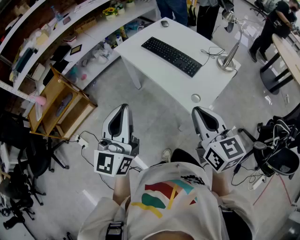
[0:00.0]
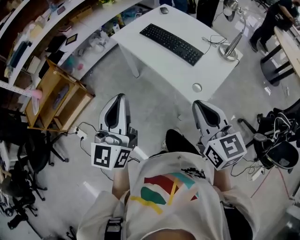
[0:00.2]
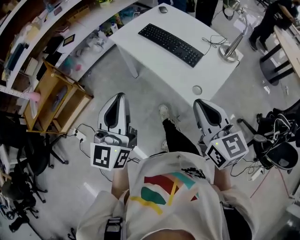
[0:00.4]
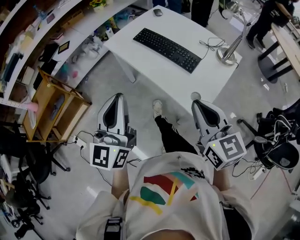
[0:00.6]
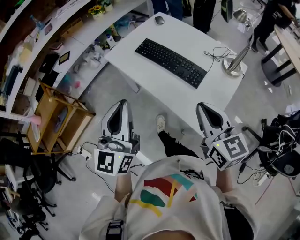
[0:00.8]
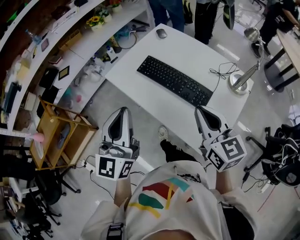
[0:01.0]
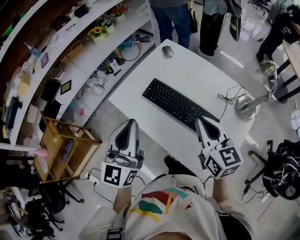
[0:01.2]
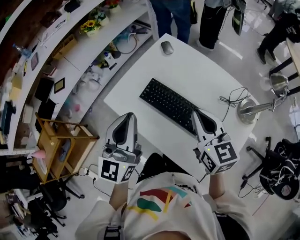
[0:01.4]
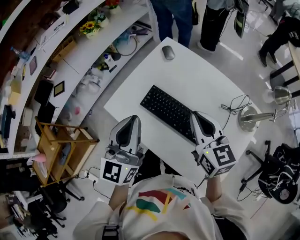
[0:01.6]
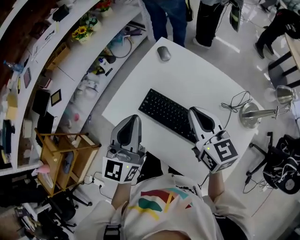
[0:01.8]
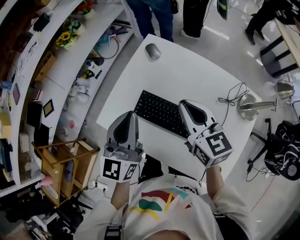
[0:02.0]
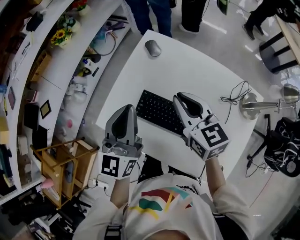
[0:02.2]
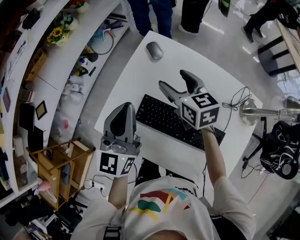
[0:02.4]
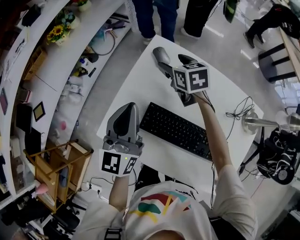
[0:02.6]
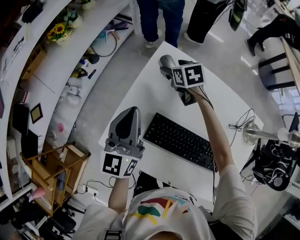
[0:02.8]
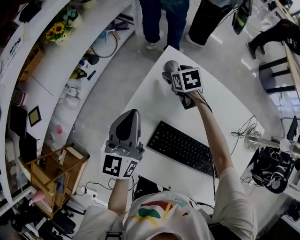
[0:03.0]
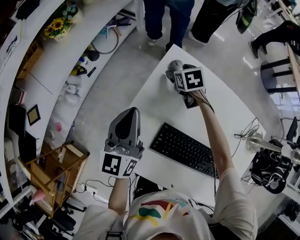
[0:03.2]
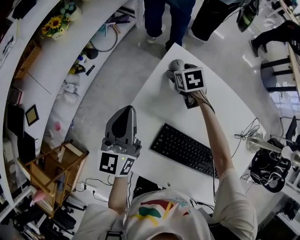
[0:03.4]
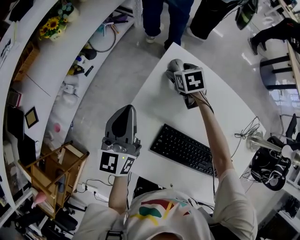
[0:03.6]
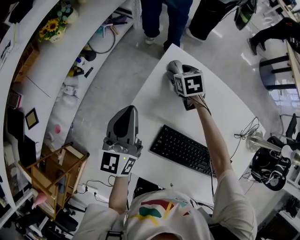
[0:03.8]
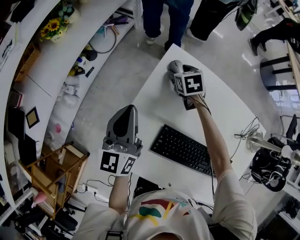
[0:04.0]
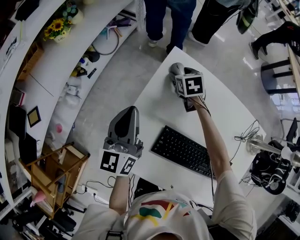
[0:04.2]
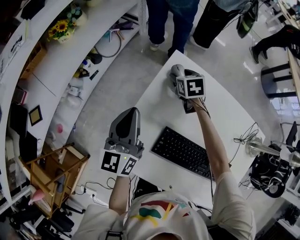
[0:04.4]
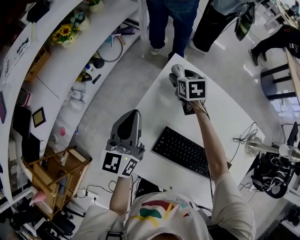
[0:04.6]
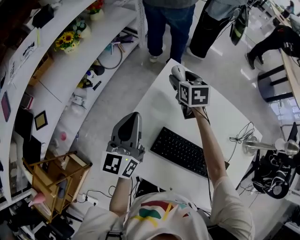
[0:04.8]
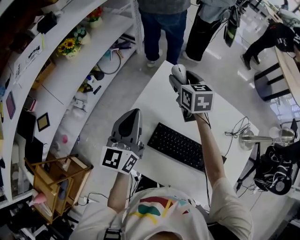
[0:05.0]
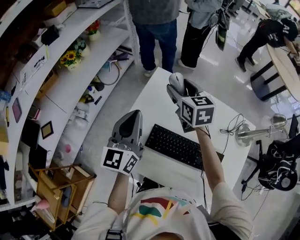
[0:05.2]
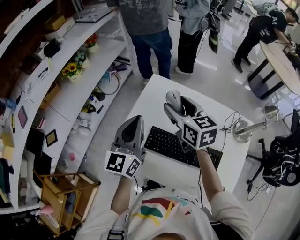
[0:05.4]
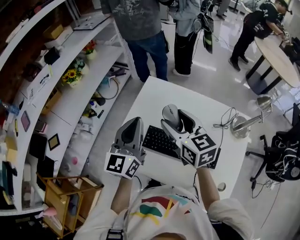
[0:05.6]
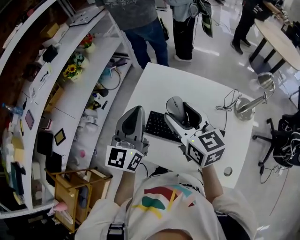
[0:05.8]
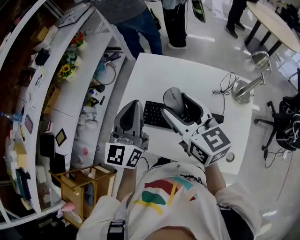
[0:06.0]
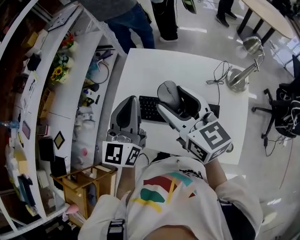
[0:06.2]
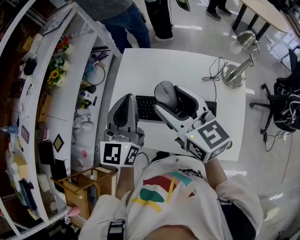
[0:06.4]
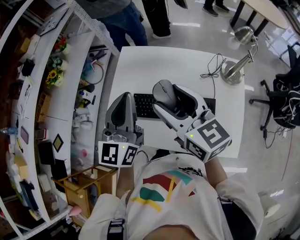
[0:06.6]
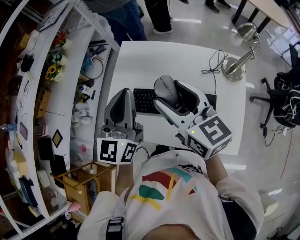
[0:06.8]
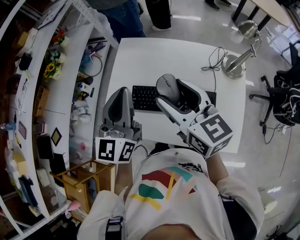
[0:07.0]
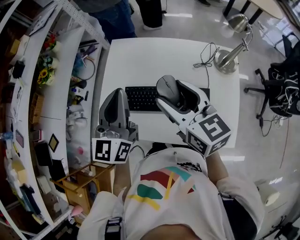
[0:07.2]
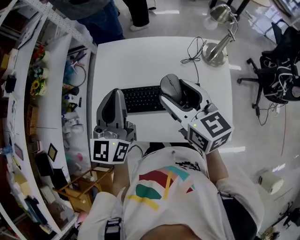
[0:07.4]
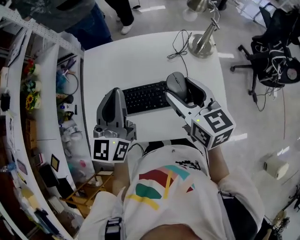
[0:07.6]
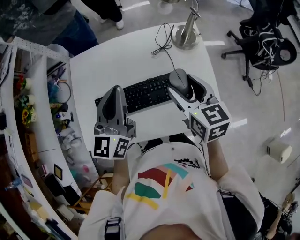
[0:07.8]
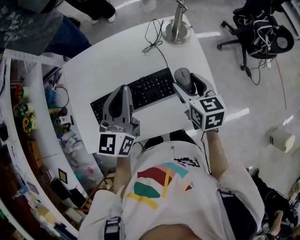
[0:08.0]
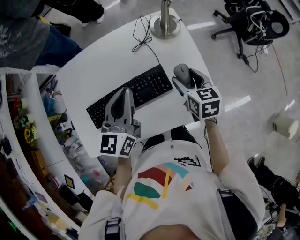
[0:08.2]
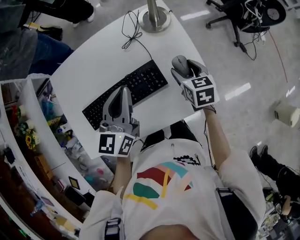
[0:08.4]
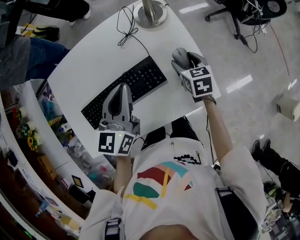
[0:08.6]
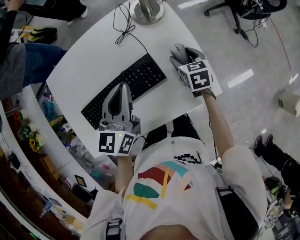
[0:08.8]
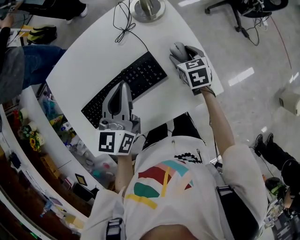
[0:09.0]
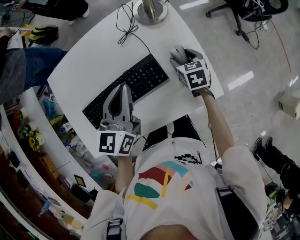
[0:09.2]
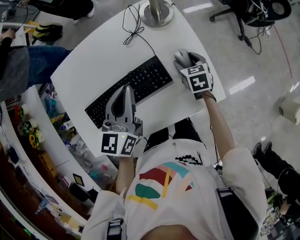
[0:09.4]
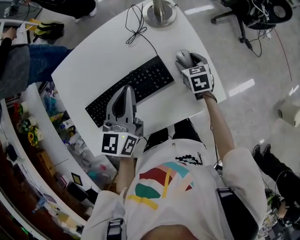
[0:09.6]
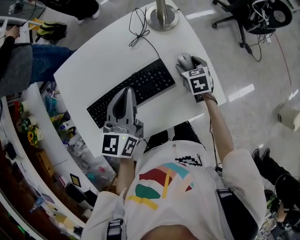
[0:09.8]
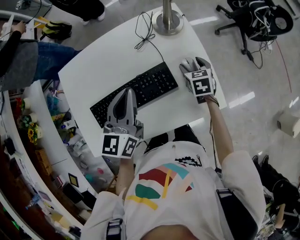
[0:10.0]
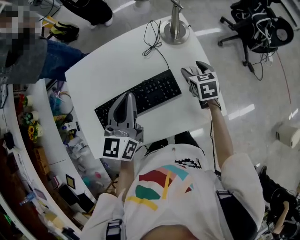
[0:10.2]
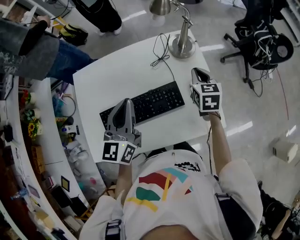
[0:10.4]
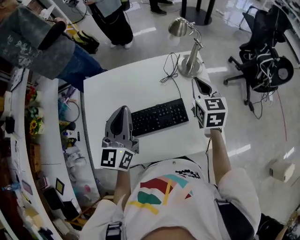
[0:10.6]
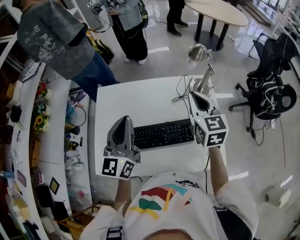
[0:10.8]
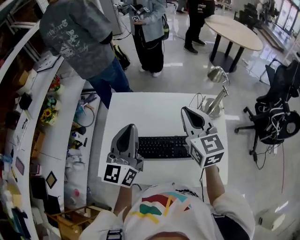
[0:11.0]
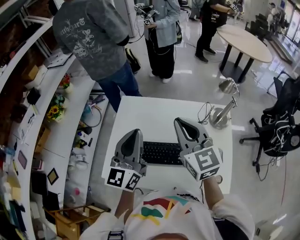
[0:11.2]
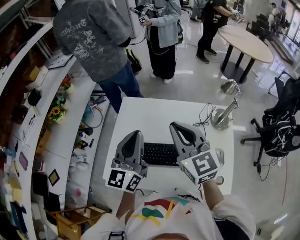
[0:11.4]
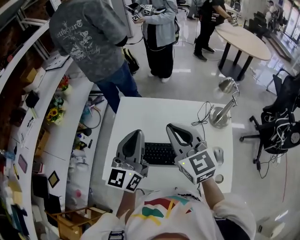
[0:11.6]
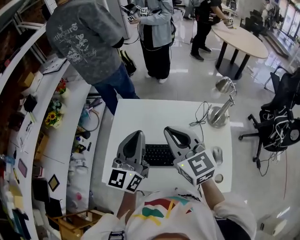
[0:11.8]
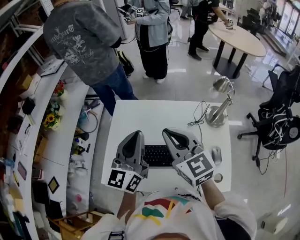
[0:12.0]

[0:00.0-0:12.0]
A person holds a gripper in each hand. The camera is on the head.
0:00.0 to 0:01.6: Both grippers are carried forward, roughly 60 cm.
0:01.6 to 0:03.0: The right gripper shifts approximately 50 cm forward and downward, angles its fingers downward, by some 40 degrees, and opens its fingers. The left gripper shifts approximately 30 cm forward and downward.
0:03.0 to 0:04.4: The grippers make only small movements.
0:04.4 to 0:06.0: The left gripper shifts some 30 cm backward, upward and to the right, and changes its angle by approximately 20 degrees. The right gripper travels backward and upward by some 50 cm, and angles its fingers upward, by about 40 degrees.
0:06.0 to 0:07.6: The left gripper heads to the right, covering about 10 cm. Meanwhile the right gripper heads to the right and downward, covering some 20 cm, and changes its angle by roughly 30 degrees.
0:07.6 to 0:09.0: The left gripper moves some 20 cm, and swivels about 30 degrees, while the right gripper heads downward, covering some 25 cm, and swivels about 40 degrees.
0:09.0 to 0:10.4: The right gripper shifts approximately 15 cm upward, and closes its fingers. The left gripper heads to the left and upward, covering approximately 10 cm.
0:10.4 to 0:12.0: The left gripper shifts by some 15 cm, and changes its angle by approximately 20 degrees. The right gripper changes place by about 35 cm, and swivels approximately 50 degrees.

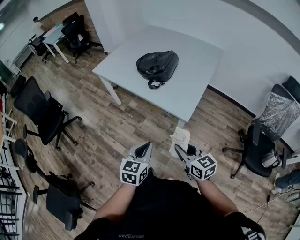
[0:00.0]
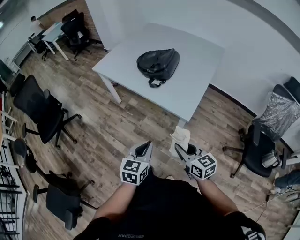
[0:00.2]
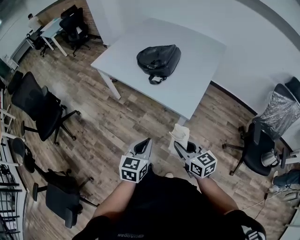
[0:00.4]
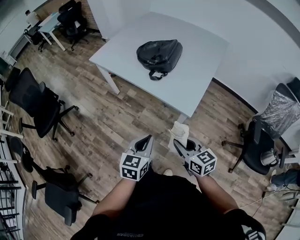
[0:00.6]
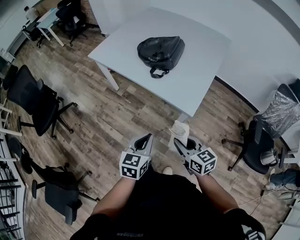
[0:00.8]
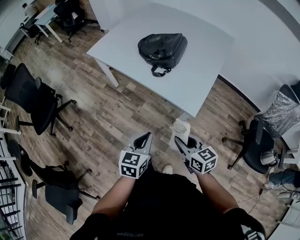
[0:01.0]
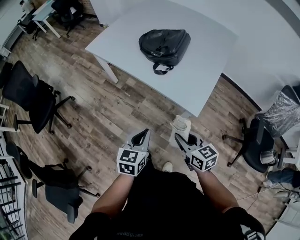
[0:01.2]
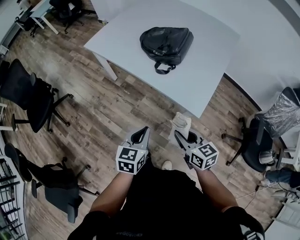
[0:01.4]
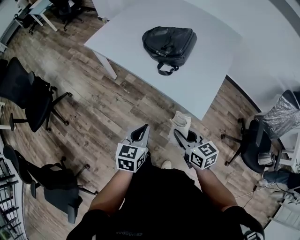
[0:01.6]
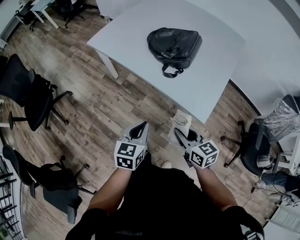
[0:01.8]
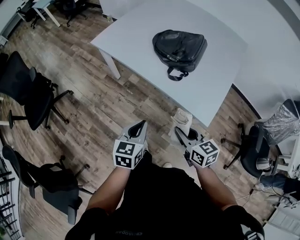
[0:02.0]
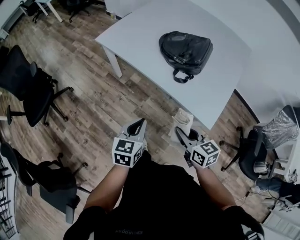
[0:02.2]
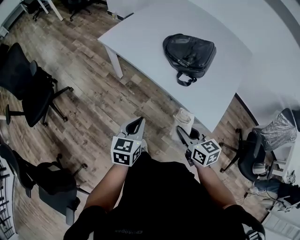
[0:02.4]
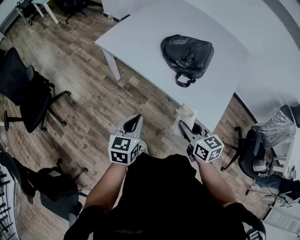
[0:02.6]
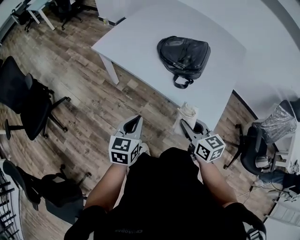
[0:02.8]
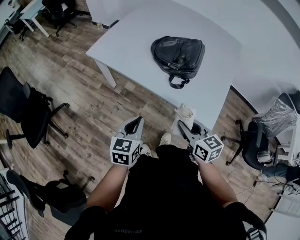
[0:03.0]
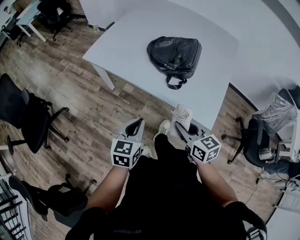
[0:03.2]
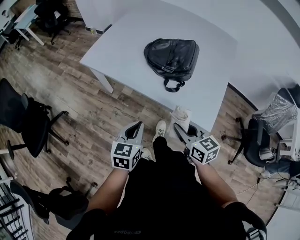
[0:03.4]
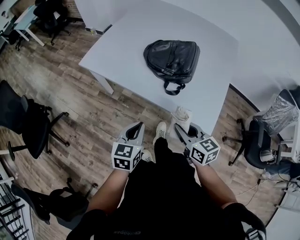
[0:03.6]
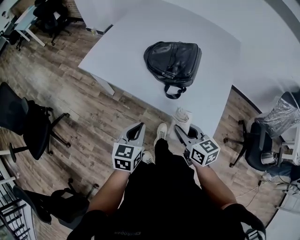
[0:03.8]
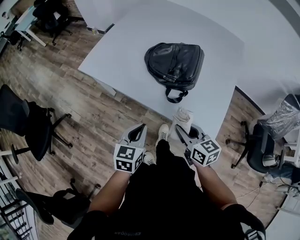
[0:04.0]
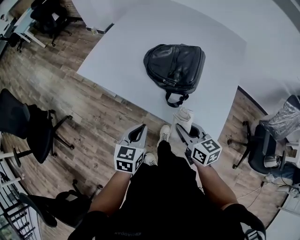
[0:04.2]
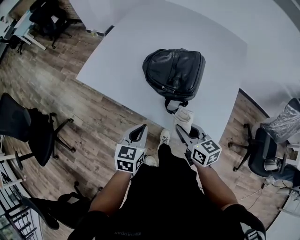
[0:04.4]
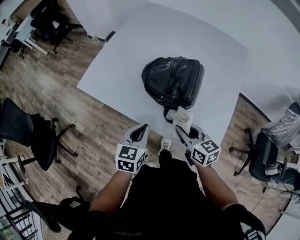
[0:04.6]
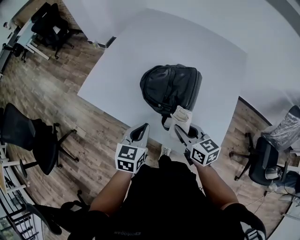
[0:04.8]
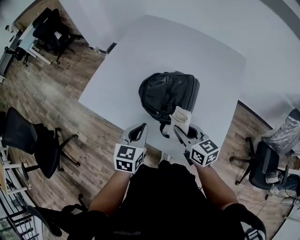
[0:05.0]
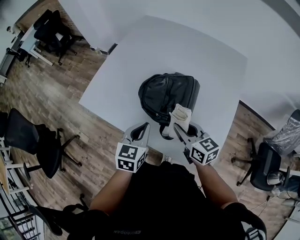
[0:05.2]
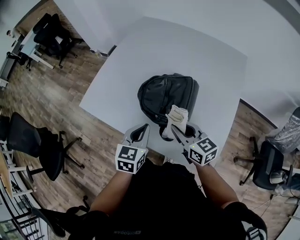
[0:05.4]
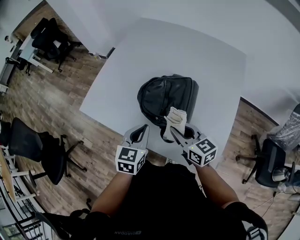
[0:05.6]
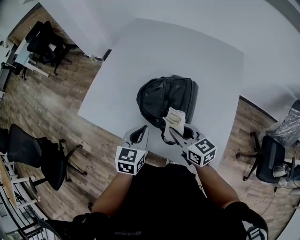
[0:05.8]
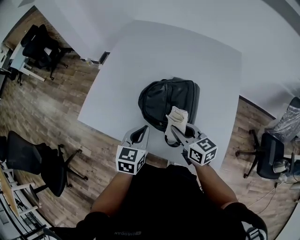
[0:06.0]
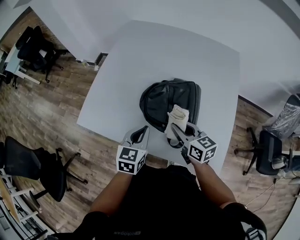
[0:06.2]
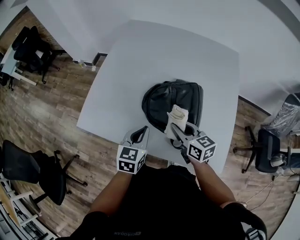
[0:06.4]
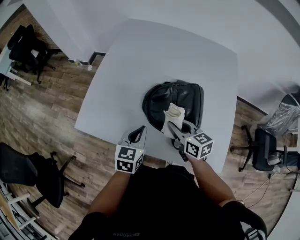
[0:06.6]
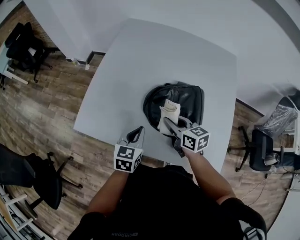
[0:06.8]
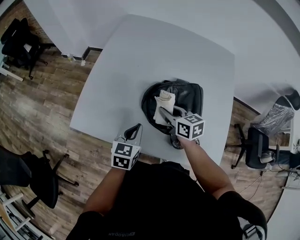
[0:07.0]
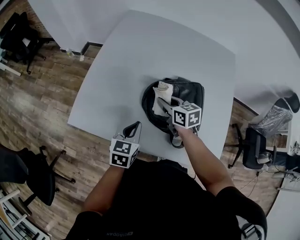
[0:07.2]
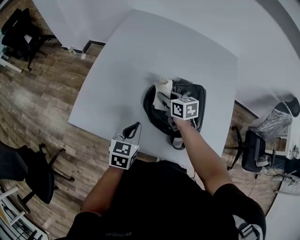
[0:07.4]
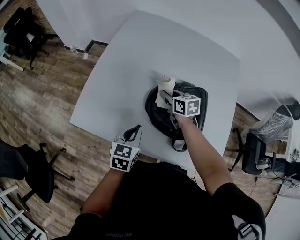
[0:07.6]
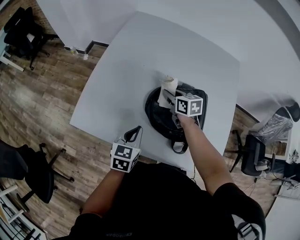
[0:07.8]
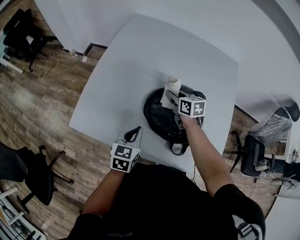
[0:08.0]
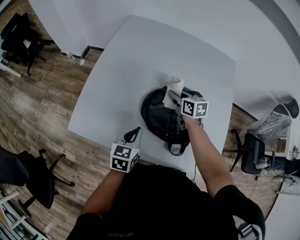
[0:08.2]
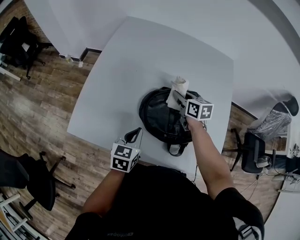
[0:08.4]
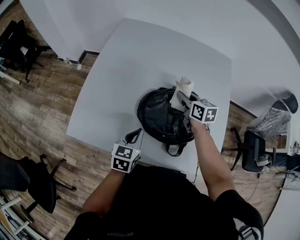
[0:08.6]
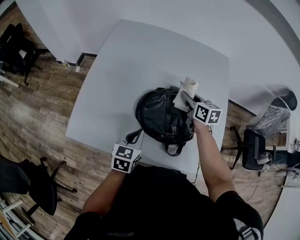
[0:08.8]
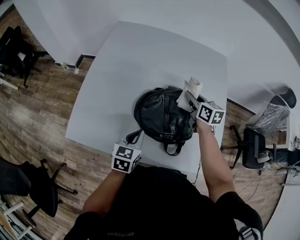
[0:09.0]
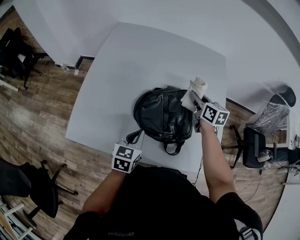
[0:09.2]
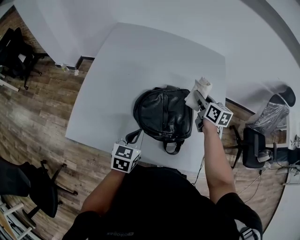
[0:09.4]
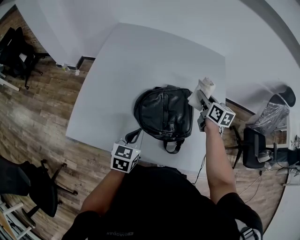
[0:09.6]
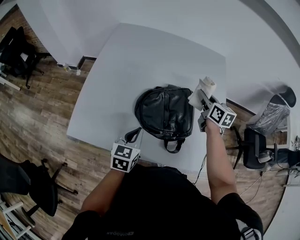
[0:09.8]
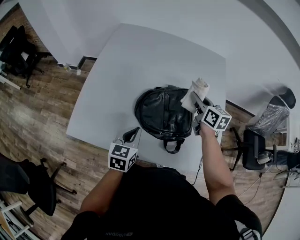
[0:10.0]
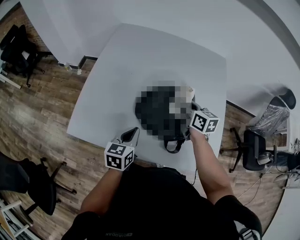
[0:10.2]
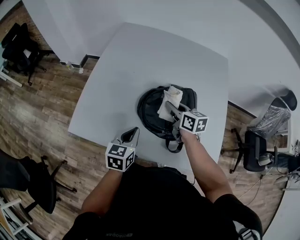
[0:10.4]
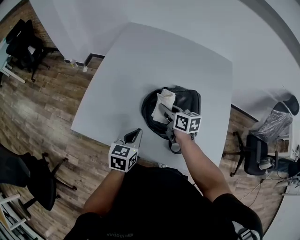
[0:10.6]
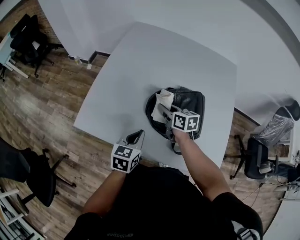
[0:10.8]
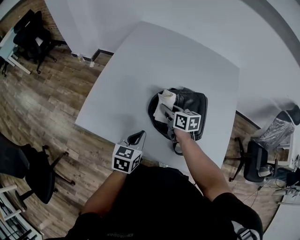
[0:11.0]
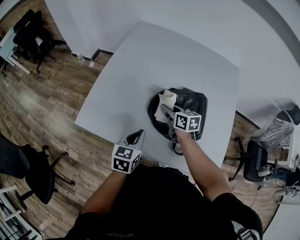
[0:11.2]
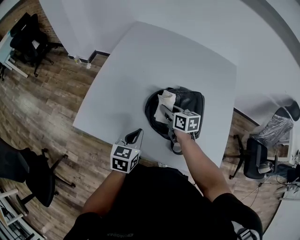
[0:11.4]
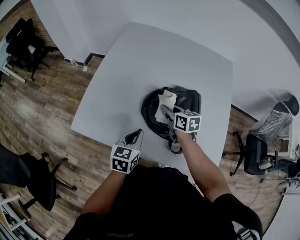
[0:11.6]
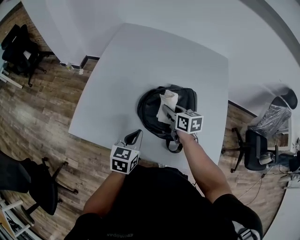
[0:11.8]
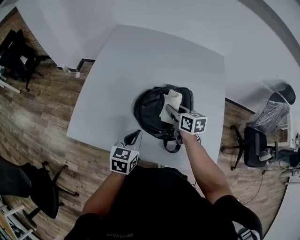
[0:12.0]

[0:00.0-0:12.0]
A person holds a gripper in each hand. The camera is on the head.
0:00.0 to 0:01.6: The two grippers go some 15 cm forward and to the left.
0:01.6 to 0:03.0: The grippers both shift forward and to the left by about 15 cm.
0:03.0 to 0:04.4: The right gripper is displaced forward by some 15 cm. The left gripper heads forward and to the right, covering some 15 cm.
0:04.4 to 0:06.0: The grippers both shift forward by approximately 15 cm.
0:06.0 to 0:07.6: The right gripper is displaced forward, to the left and downward by about 25 cm; the left gripper is displaced to the left, downward and forward by some 15 cm.
0:07.6 to 0:09.0: The right gripper shifts some 20 cm to the right and upward, and turns by some 20 degrees; the left gripper is displaced to the right by roughly 5 cm.
0:09.0 to 0:10.4: The right gripper is displaced to the left and backward by roughly 10 cm.
0:10.4 to 0:12.0: The right gripper reaches approximately 10 cm to the left, then returns.
